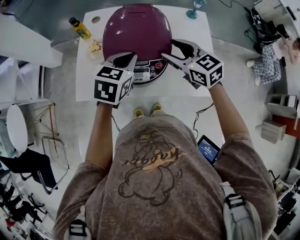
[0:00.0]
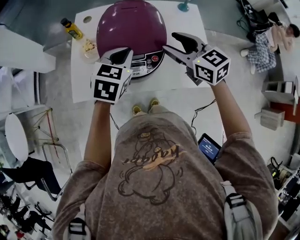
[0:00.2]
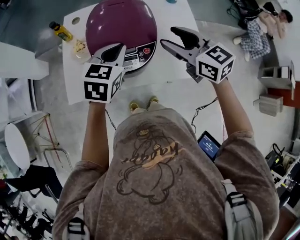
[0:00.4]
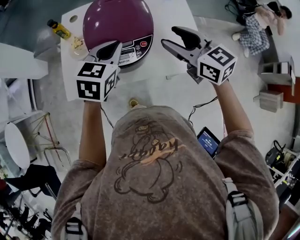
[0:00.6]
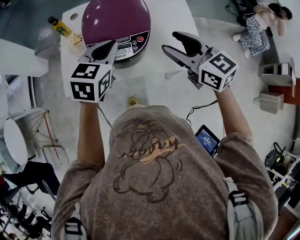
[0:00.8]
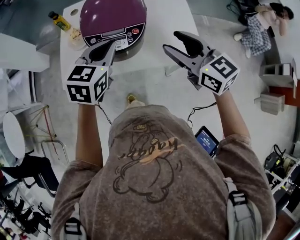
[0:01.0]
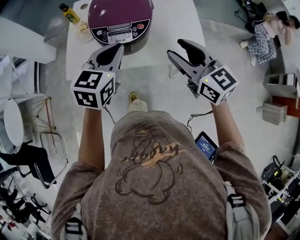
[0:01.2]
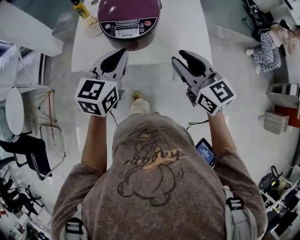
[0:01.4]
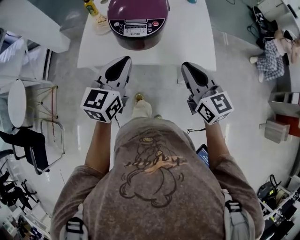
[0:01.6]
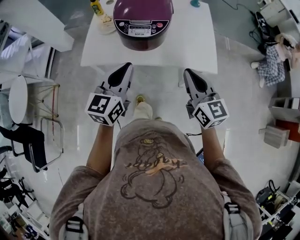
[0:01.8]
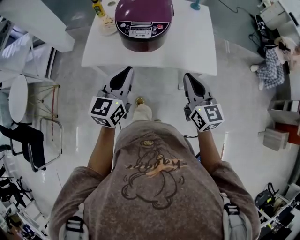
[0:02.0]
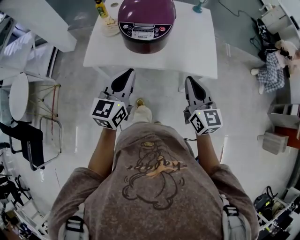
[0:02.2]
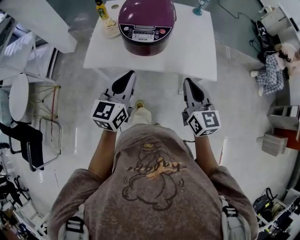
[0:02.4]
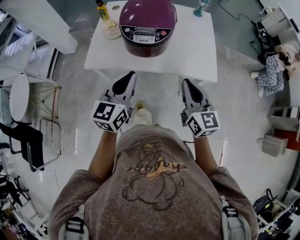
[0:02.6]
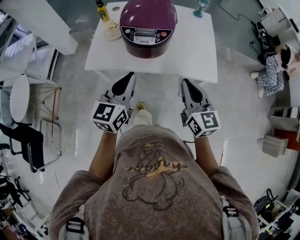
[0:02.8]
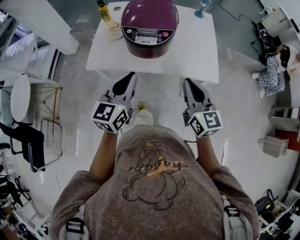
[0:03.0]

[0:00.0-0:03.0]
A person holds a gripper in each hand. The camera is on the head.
0.0 to 1.6 s: The two grippers go approximately 25 cm backward. The left gripper turns by some 30 degrees. The right gripper turns by some 20 degrees, and closes.
1.6 to 3.0 s: There are only small adjustments of the grippers.

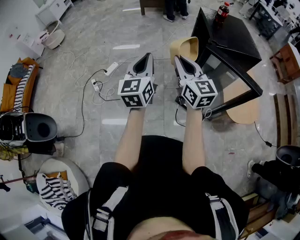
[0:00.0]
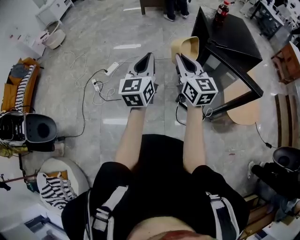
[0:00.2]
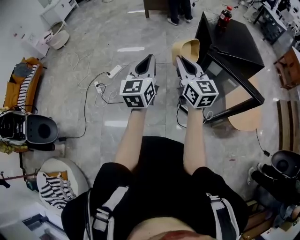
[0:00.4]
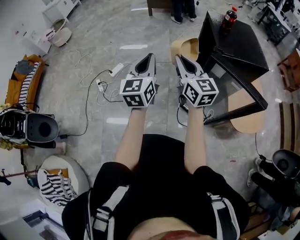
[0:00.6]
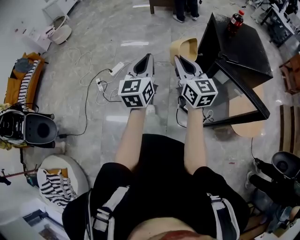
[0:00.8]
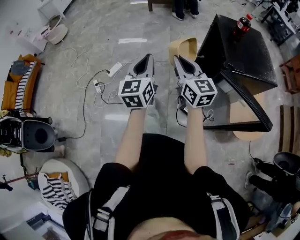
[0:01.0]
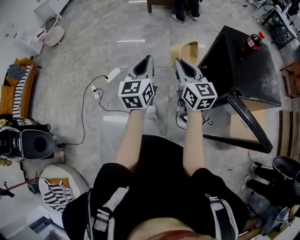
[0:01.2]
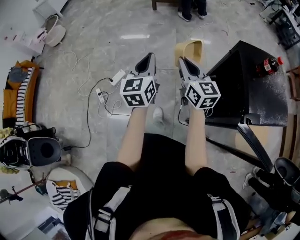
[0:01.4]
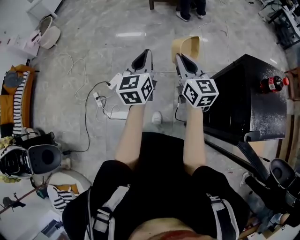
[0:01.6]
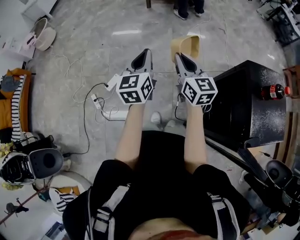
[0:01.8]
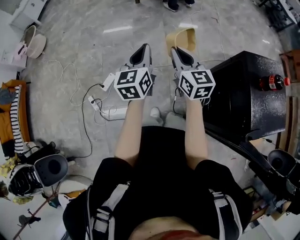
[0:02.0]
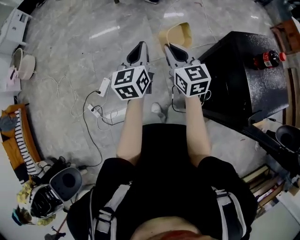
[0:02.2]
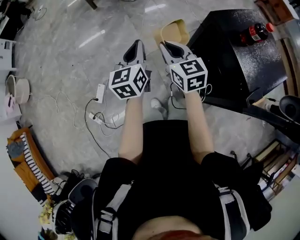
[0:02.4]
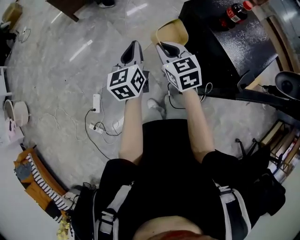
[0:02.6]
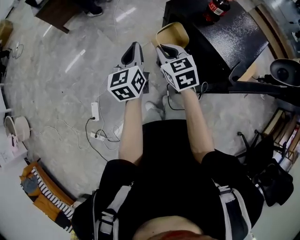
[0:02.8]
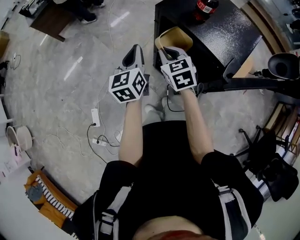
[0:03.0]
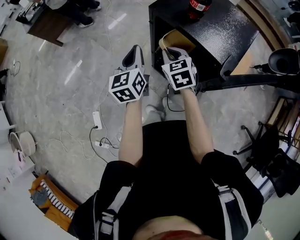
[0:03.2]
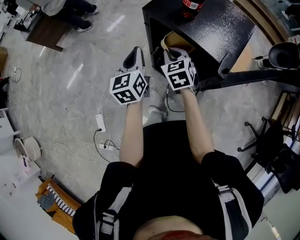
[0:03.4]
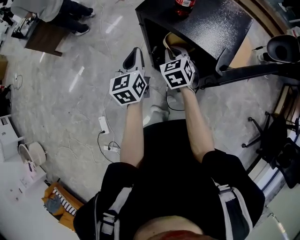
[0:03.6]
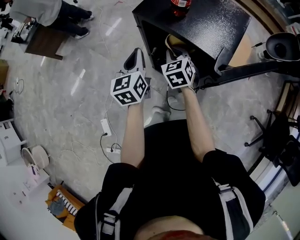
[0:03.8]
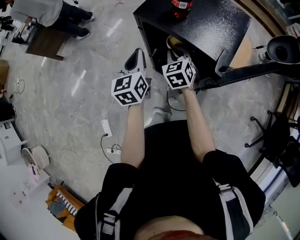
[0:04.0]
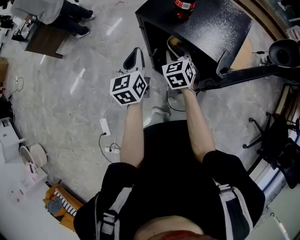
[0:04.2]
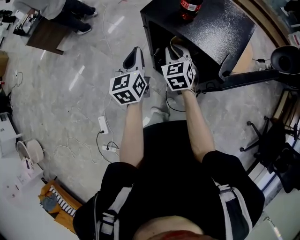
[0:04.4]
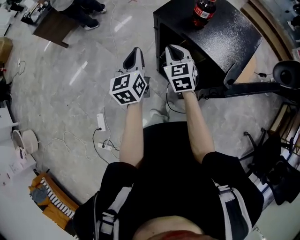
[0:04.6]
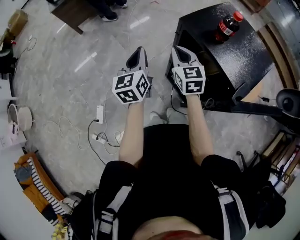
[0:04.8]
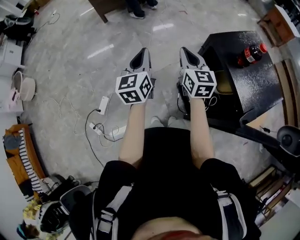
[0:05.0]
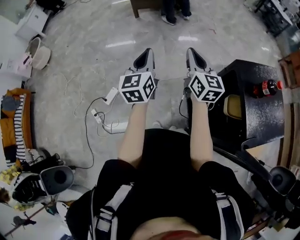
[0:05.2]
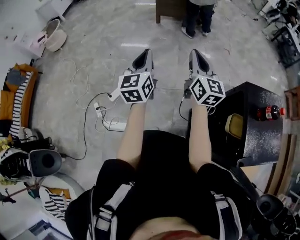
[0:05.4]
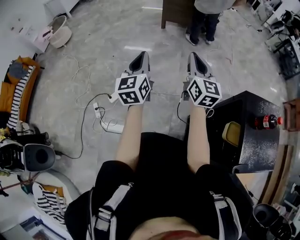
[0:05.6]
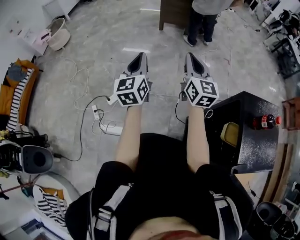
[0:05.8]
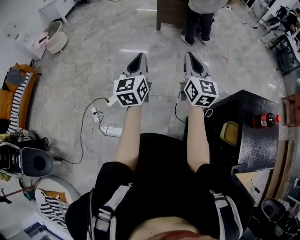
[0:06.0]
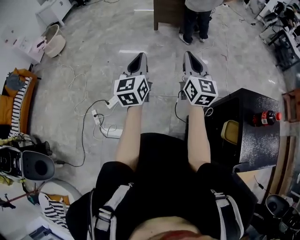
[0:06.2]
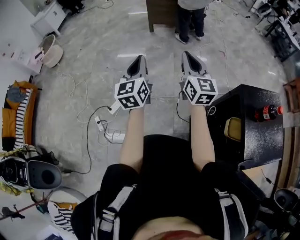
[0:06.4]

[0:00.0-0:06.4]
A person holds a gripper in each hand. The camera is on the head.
0.0 to 1.6 s: Both grippers are carried forward, some 50 cm.
1.6 to 3.2 s: The right gripper changes place by approximately 30 cm, and tips its fingers downward by about 30 degrees, while the left gripper moves roughly 30 cm, and swivels roughly 40 degrees.
3.2 to 4.8 s: The grippers both shift to the left by roughly 5 cm. The right gripper turns by some 20 degrees.
4.8 to 6.4 s: The right gripper shifts by approximately 30 cm, and changes its angle by about 40 degrees. The left gripper shifts by some 30 cm, and turns by about 40 degrees.

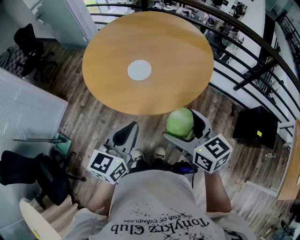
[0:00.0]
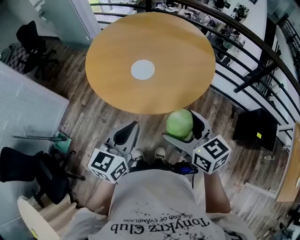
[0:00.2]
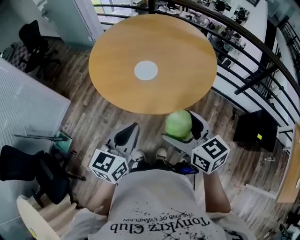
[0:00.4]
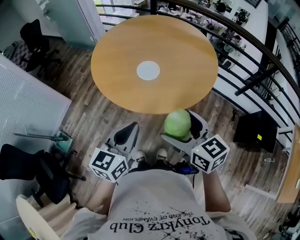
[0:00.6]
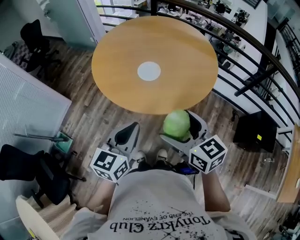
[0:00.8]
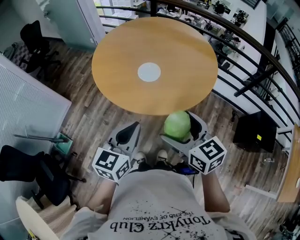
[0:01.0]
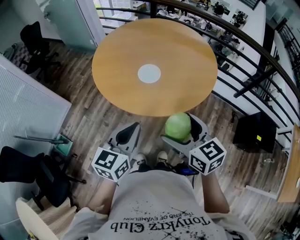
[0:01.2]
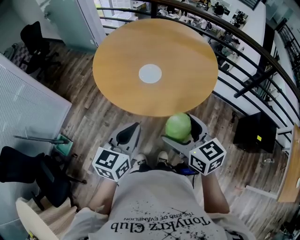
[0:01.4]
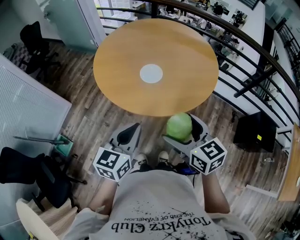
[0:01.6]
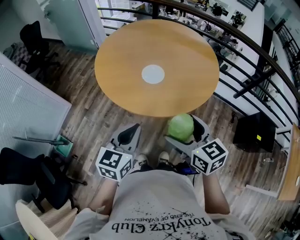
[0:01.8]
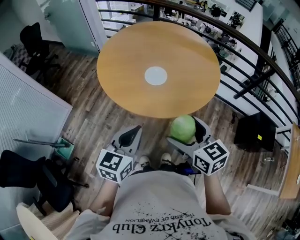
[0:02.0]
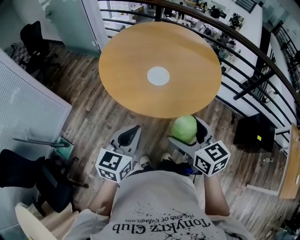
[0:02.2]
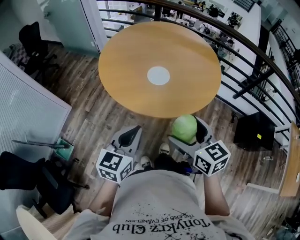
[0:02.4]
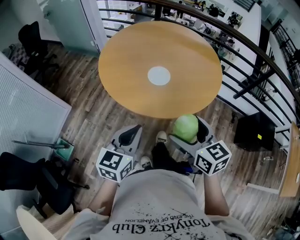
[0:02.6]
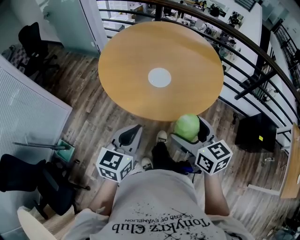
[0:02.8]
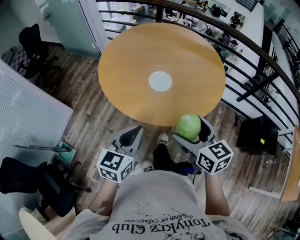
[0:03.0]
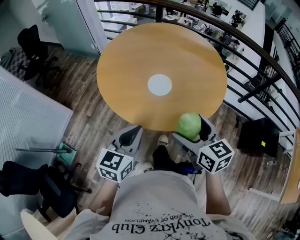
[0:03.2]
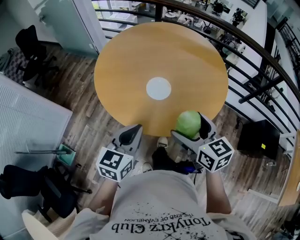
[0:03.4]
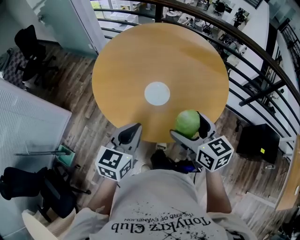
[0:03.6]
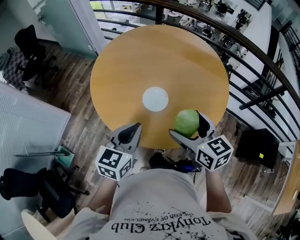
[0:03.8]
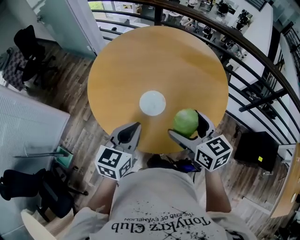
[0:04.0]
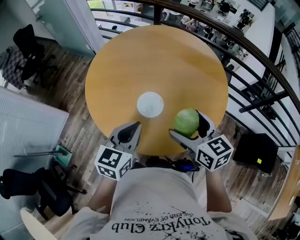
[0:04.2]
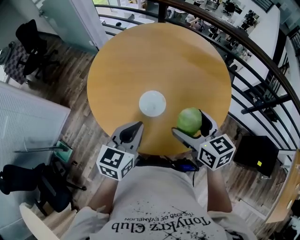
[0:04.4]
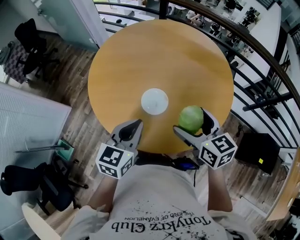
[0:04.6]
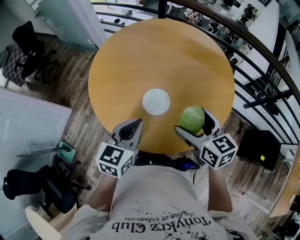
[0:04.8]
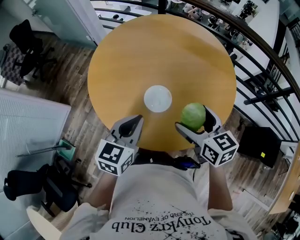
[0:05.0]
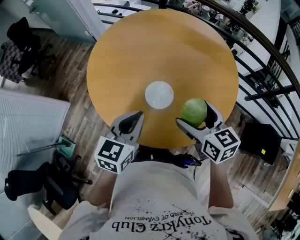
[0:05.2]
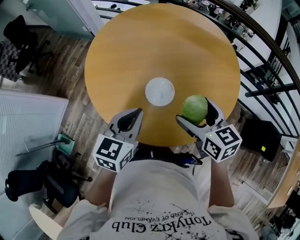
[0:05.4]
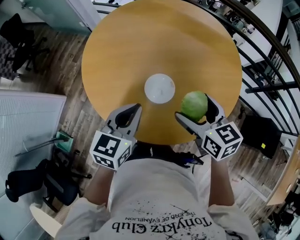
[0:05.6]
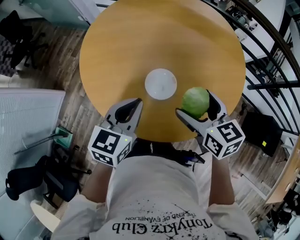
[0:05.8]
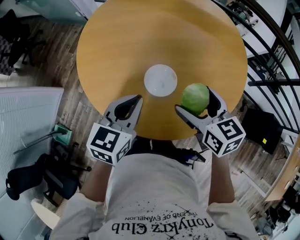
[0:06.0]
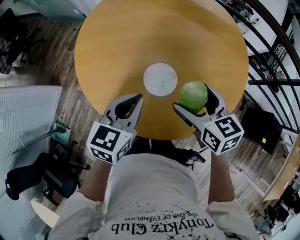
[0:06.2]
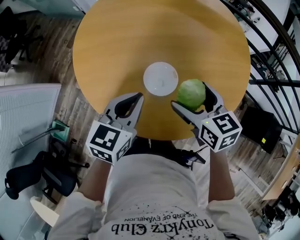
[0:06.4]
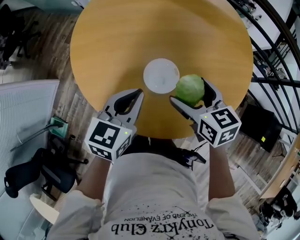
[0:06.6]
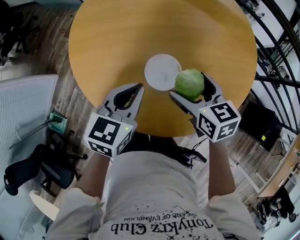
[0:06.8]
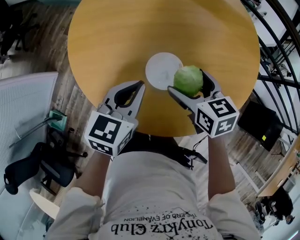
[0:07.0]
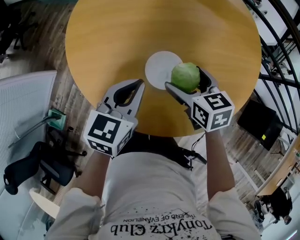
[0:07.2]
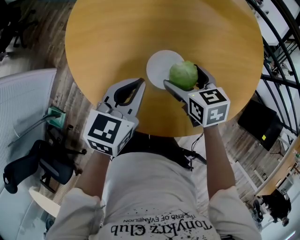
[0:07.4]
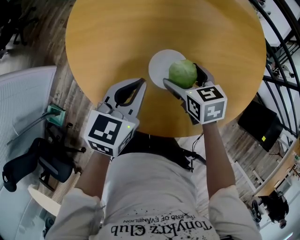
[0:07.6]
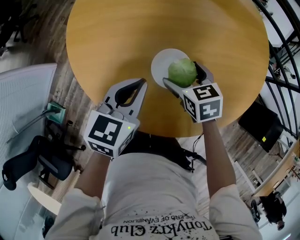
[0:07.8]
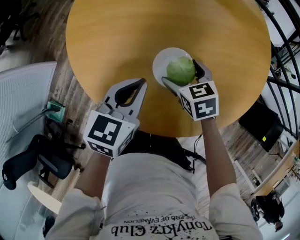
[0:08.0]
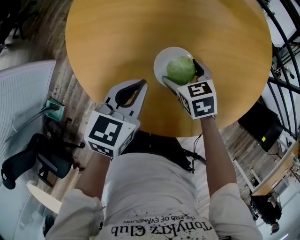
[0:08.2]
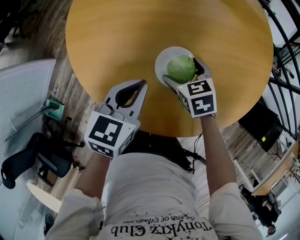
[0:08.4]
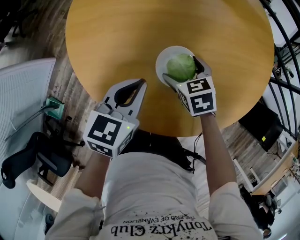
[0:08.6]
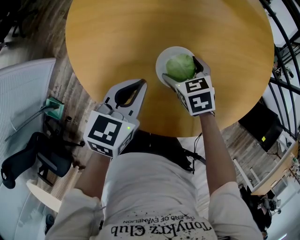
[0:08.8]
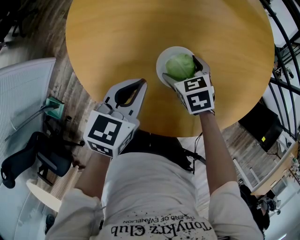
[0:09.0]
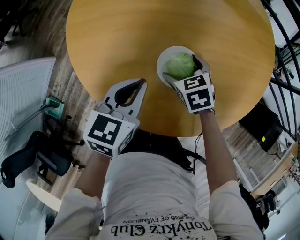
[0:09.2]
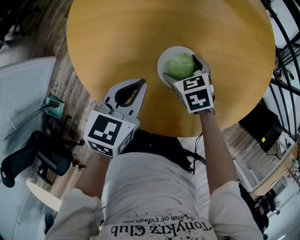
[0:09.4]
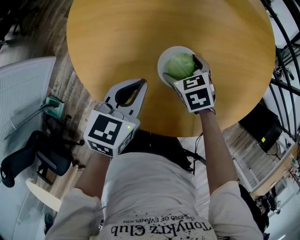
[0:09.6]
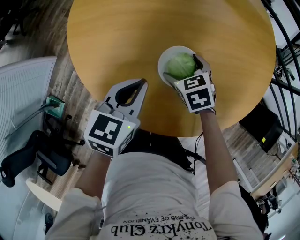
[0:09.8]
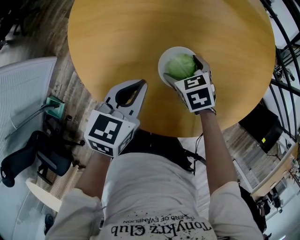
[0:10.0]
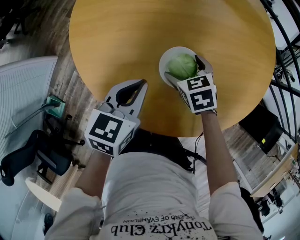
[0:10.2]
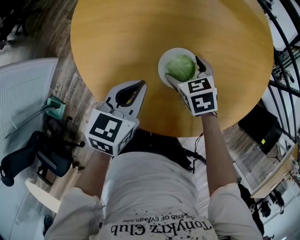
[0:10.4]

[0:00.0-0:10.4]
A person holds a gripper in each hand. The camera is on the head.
0.0 to 1.4 s: Both grippers move to the left, approximately 5 cm.
1.4 to 3.0 s: The left gripper travels to the left by approximately 5 cm. The right gripper shifts roughly 5 cm forward.
3.0 to 4.4 s: The left gripper shifts some 20 cm forward and to the right, while the right gripper travels forward by approximately 20 cm.
4.4 to 6.0 s: The right gripper is displaced downward and forward by roughly 10 cm; the left gripper moves forward and downward, roughly 10 cm.
6.0 to 7.4 s: The left gripper goes about 10 cm downward and forward. The right gripper shifts about 15 cm downward and forward.
7.4 to 9.0 s: The right gripper goes some 10 cm downward.
9.0 to 10.4 s: The grippers stay close to where they were, moving slightly.

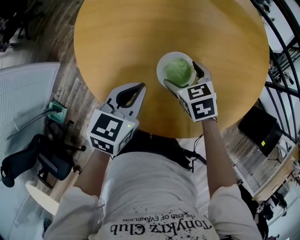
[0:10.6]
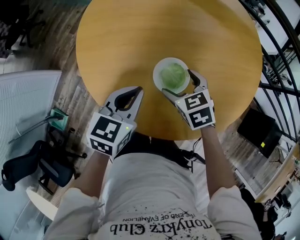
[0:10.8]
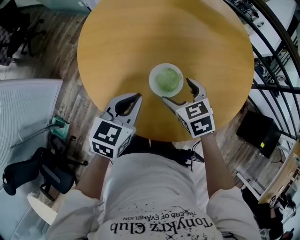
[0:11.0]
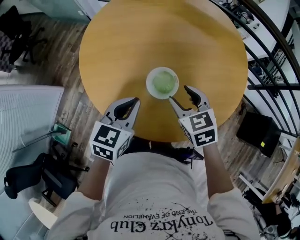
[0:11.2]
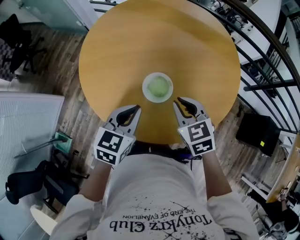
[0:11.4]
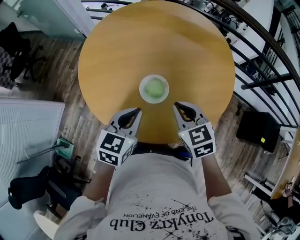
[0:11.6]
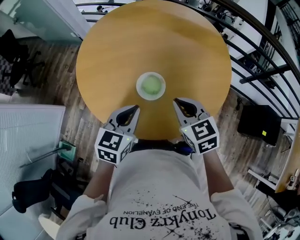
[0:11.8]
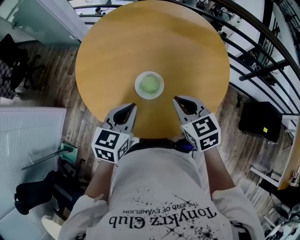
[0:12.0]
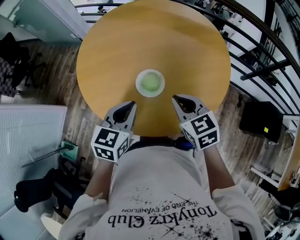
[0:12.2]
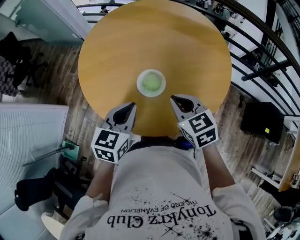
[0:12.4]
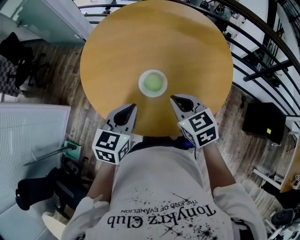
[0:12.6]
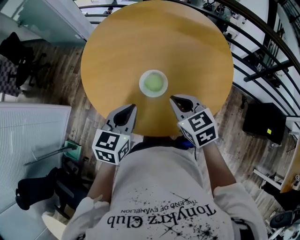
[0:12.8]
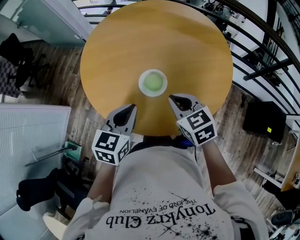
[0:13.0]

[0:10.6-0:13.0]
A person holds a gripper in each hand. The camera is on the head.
10.6 to 11.8 s: The right gripper goes approximately 25 cm upward and backward, rotates roughly 20 degrees, and closes up; the left gripper goes some 15 cm upward and backward.
11.8 to 13.0 s: The grippers make only small movements.

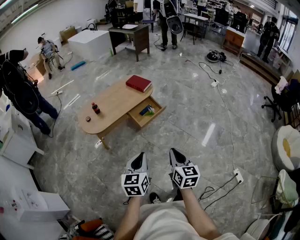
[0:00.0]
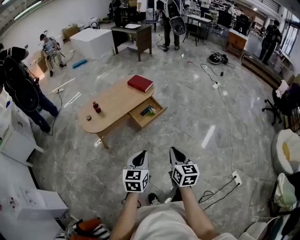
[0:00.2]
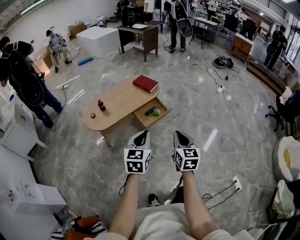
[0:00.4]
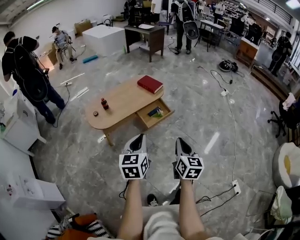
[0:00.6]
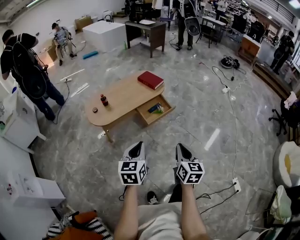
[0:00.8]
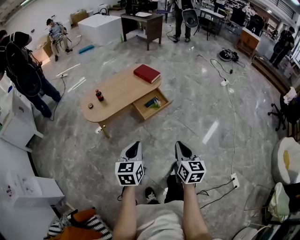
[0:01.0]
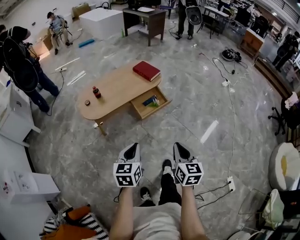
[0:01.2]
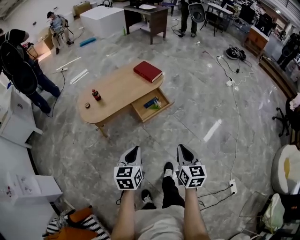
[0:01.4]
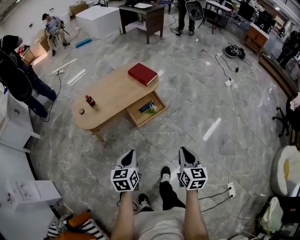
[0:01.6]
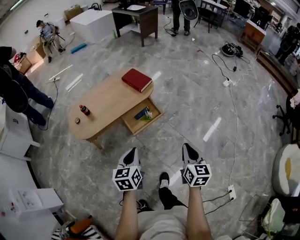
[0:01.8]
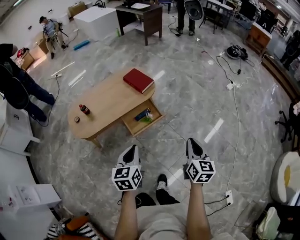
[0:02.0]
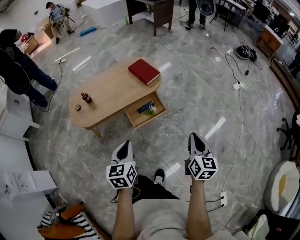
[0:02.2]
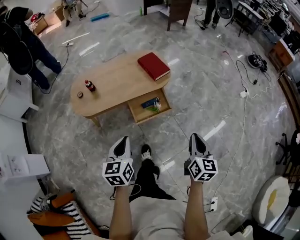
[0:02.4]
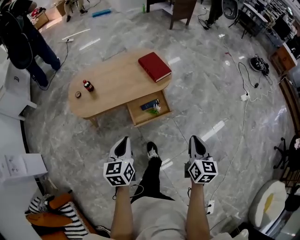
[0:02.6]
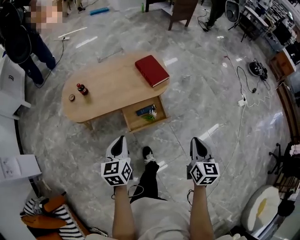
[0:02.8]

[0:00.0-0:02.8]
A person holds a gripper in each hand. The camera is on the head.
0.0 to 1.4 s: The right gripper swings forward and backward, some 15 cm each way, with 2 reversals, while the left gripper swings forward and backward, approximately 15 cm each way, with 2 reversals.
1.4 to 2.8 s: The left gripper moves forward, roughly 30 cm, and rotates about 20 degrees; the right gripper heads forward and to the right, covering about 35 cm.
